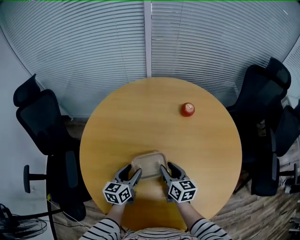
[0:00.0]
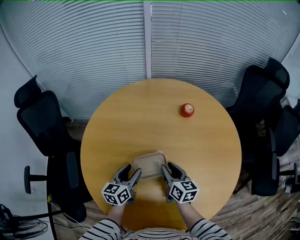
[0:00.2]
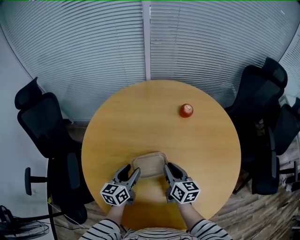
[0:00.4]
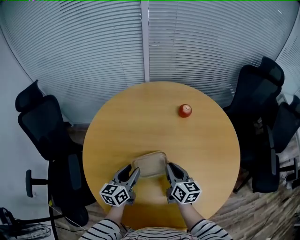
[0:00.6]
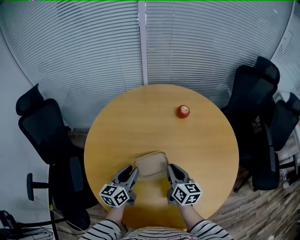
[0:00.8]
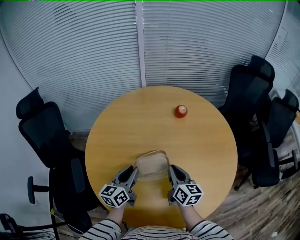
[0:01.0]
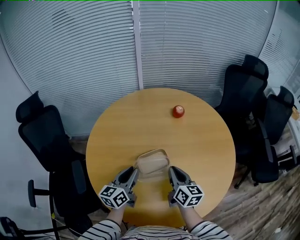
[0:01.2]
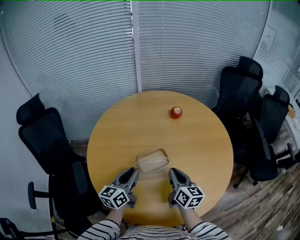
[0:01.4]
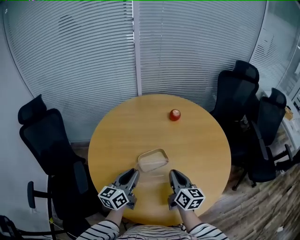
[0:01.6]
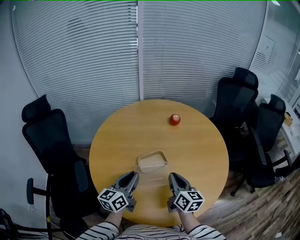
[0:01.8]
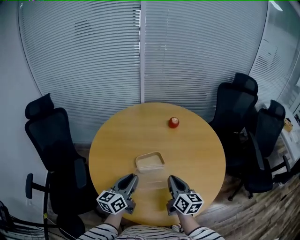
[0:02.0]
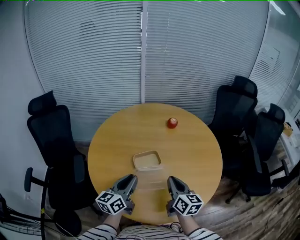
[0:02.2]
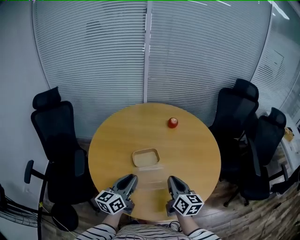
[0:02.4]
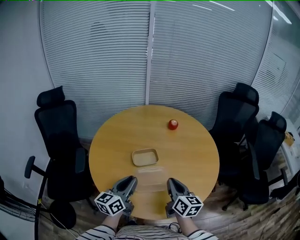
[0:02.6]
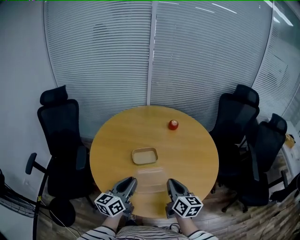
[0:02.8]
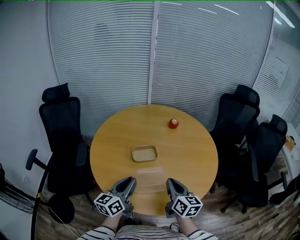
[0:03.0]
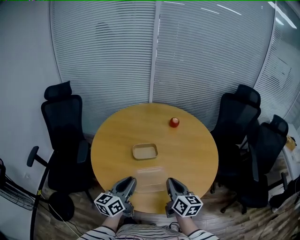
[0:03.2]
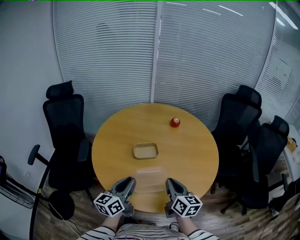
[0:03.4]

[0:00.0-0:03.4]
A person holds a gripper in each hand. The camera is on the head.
0:00.0 to 0:01.6: The left gripper heads upward and backward, covering roughly 15 cm, turns by roughly 20 degrees, and closes up. The right gripper is displaced backward and upward by some 20 cm, and closes up.
0:01.6 to 0:03.4: The two grippers go roughly 20 cm backward and to the right.

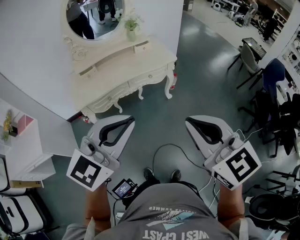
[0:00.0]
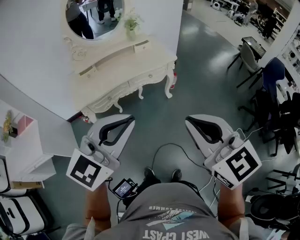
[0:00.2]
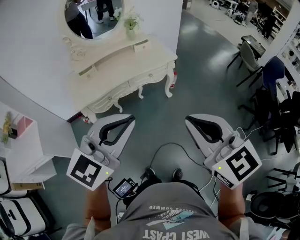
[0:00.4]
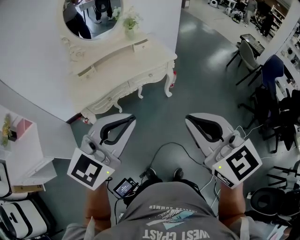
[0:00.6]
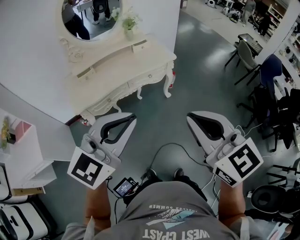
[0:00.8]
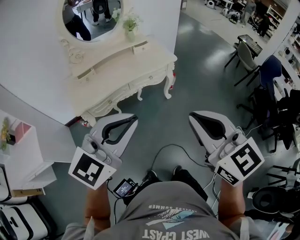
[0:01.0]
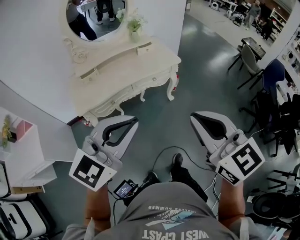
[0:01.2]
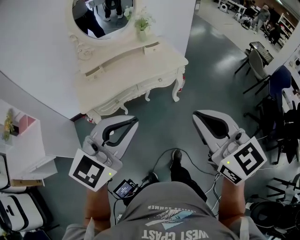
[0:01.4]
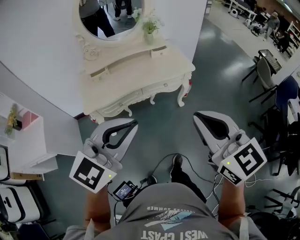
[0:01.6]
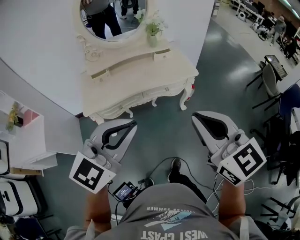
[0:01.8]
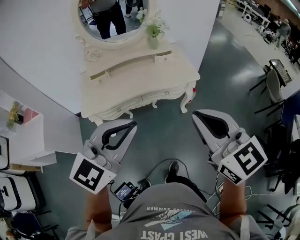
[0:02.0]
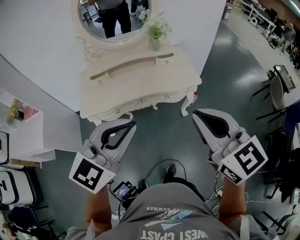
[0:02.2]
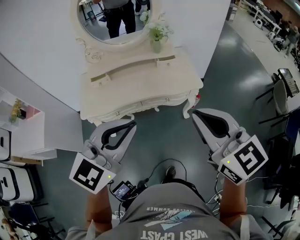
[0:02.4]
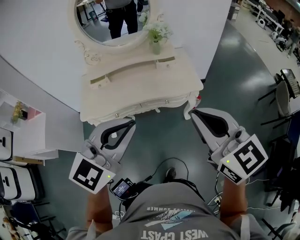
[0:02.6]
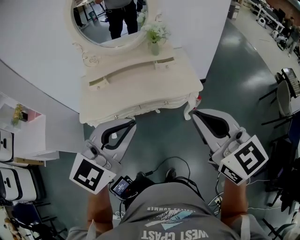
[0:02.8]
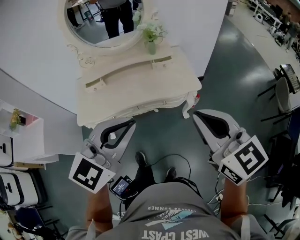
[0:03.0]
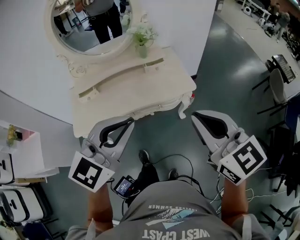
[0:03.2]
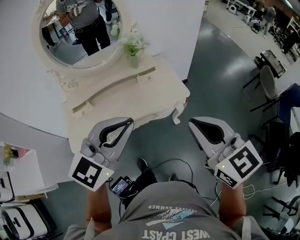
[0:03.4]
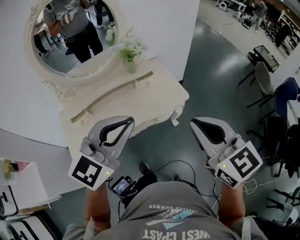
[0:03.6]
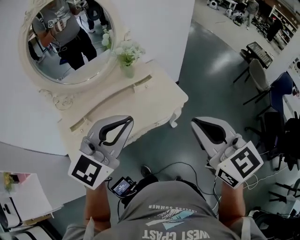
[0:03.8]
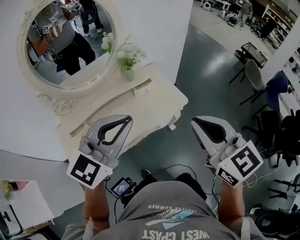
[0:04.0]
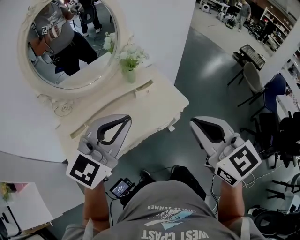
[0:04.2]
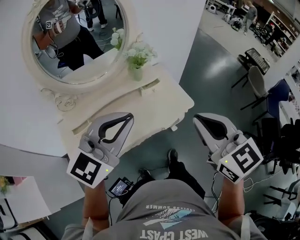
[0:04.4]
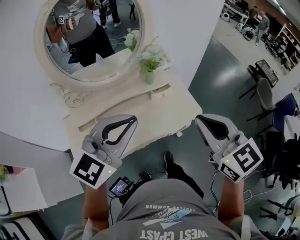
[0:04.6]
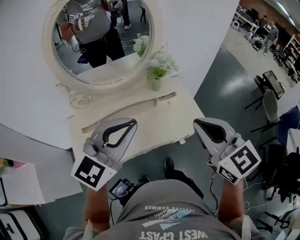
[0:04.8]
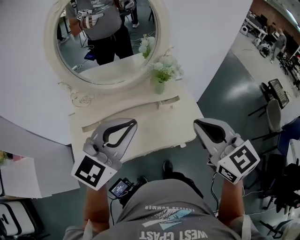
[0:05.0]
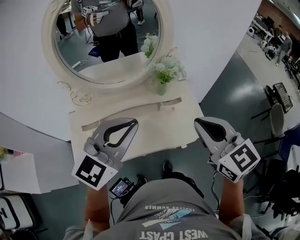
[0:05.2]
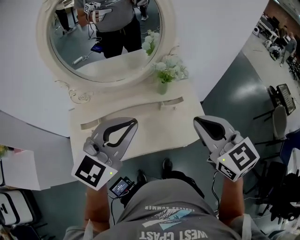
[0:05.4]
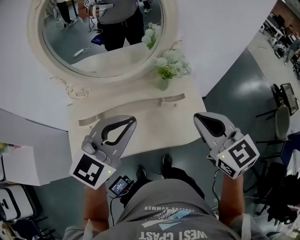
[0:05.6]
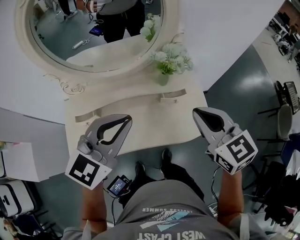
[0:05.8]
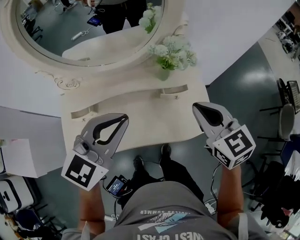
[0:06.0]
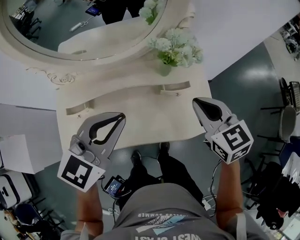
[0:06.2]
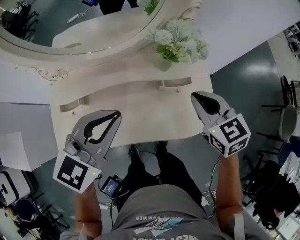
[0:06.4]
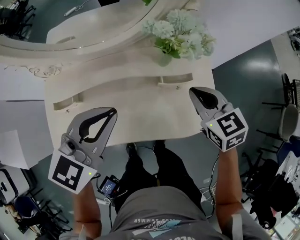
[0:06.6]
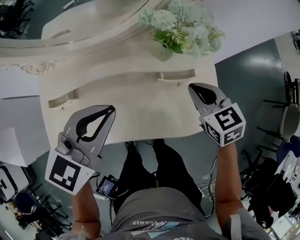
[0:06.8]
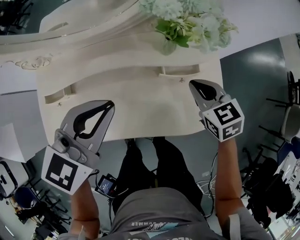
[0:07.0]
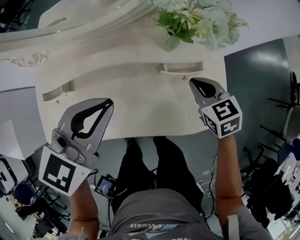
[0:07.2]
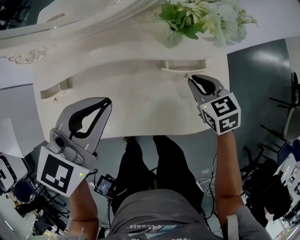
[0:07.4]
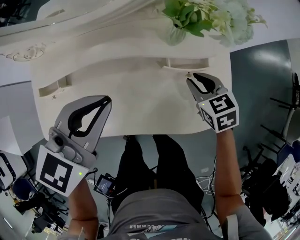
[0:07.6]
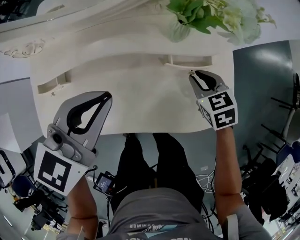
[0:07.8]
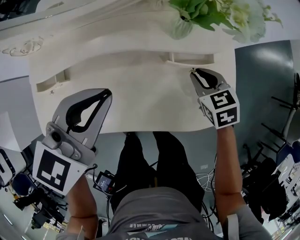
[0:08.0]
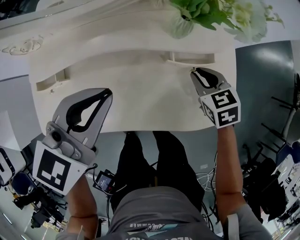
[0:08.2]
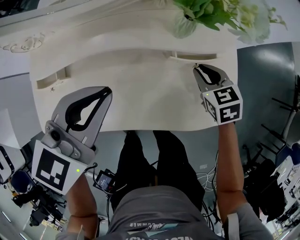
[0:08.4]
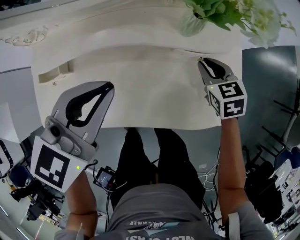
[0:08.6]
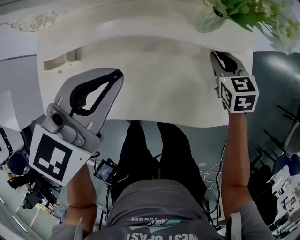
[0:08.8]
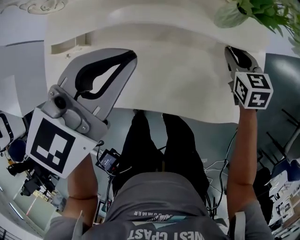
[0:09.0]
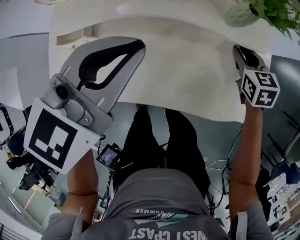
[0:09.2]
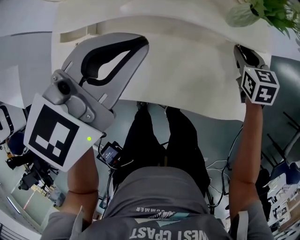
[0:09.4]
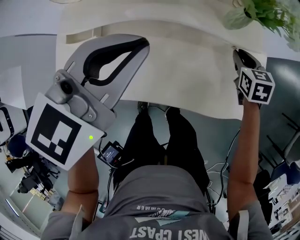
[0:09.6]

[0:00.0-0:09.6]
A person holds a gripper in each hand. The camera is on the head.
0:00.0 to 0:01.6: The left gripper shifts about 10 cm forward and to the left. The right gripper shifts about 15 cm forward.
0:01.6 to 0:03.2: Both grippers travel together forward and to the right, approximately 30 cm.
0:03.2 to 0:04.8: Both grippers move to the left and forward, roughly 25 cm.
0:04.8 to 0:06.4: The right gripper shifts roughly 35 cm forward and downward, and rotates roughly 20 degrees; the left gripper heads downward and forward, covering some 25 cm, and changes its angle by roughly 30 degrees.
0:06.4 to 0:08.0: The left gripper is displaced downward by roughly 10 cm. The right gripper shifts some 25 cm downward.
0:08.0 to 0:09.6: The left gripper changes place by some 5 cm.

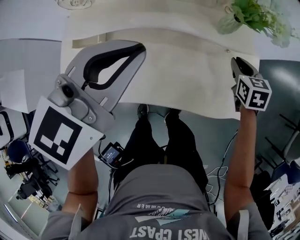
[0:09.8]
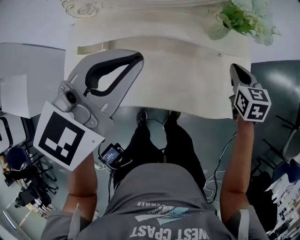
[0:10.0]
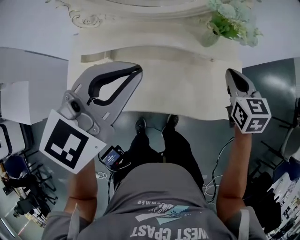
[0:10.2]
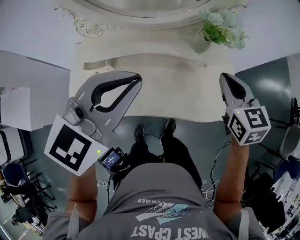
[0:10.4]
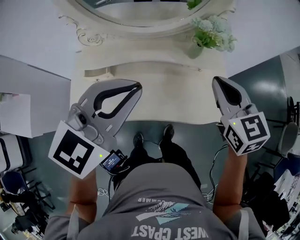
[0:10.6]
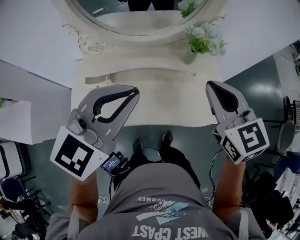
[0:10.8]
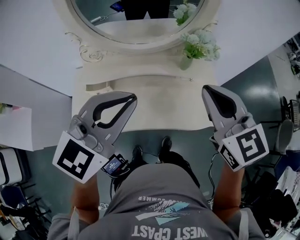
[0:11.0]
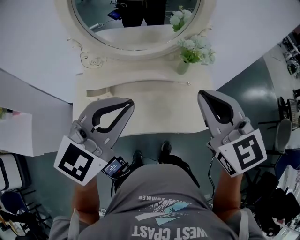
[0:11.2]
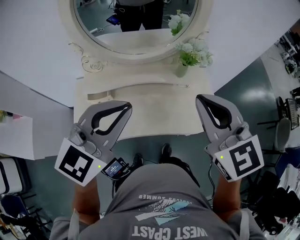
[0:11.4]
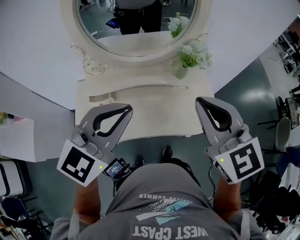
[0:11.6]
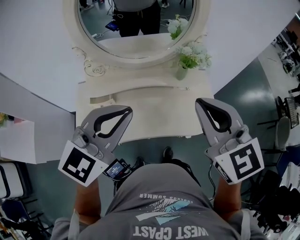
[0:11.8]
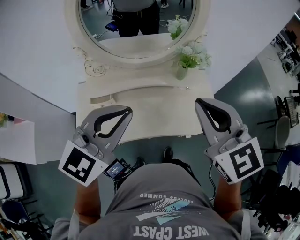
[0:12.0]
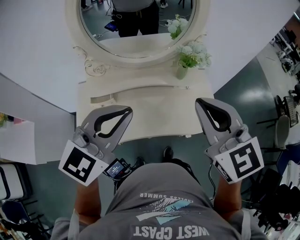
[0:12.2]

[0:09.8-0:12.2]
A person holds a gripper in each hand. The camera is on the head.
0:09.8 to 0:11.0: The left gripper is displaced upward and backward by about 20 cm. Meanwhile the right gripper heads upward and backward, covering roughly 40 cm, and rotates roughly 30 degrees.
0:11.0 to 0:12.2: The right gripper goes about 10 cm backward and upward; the left gripper changes place by some 5 cm.

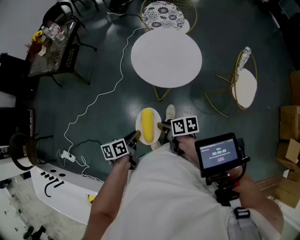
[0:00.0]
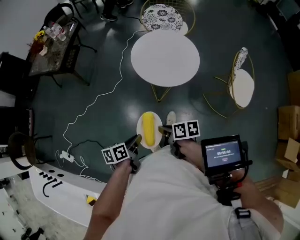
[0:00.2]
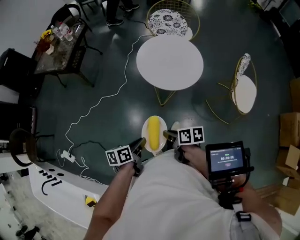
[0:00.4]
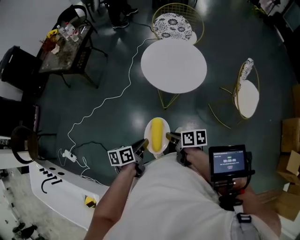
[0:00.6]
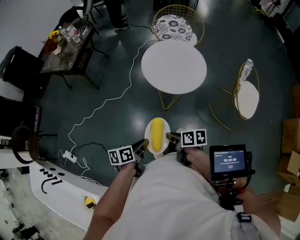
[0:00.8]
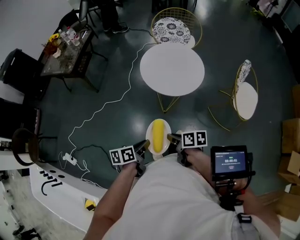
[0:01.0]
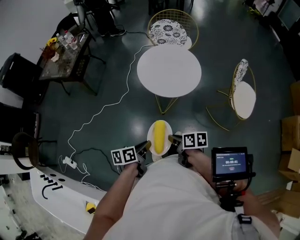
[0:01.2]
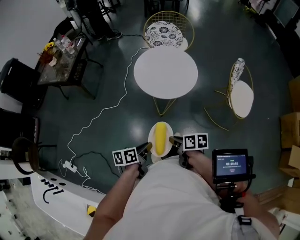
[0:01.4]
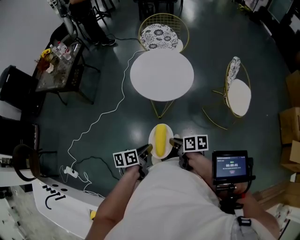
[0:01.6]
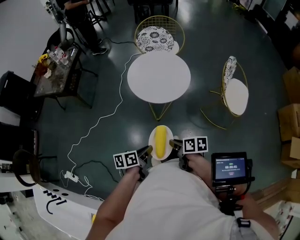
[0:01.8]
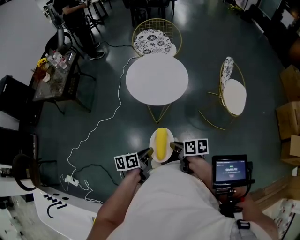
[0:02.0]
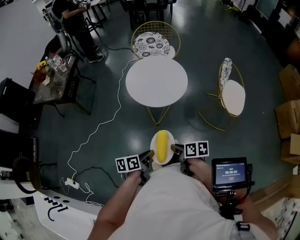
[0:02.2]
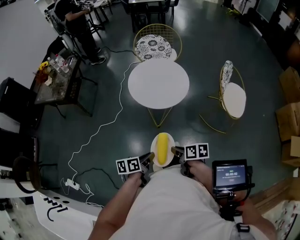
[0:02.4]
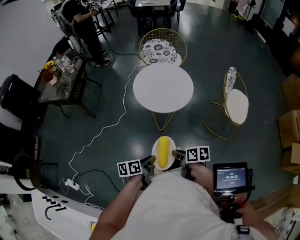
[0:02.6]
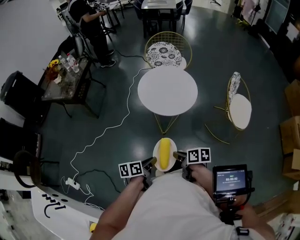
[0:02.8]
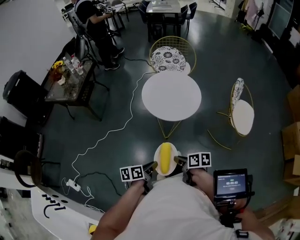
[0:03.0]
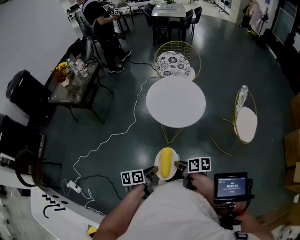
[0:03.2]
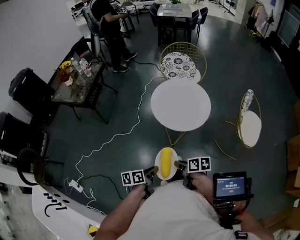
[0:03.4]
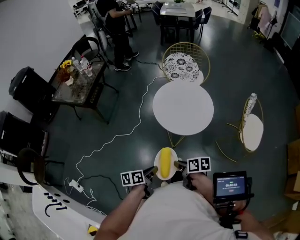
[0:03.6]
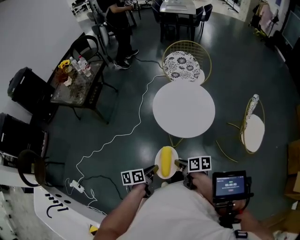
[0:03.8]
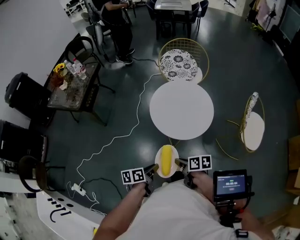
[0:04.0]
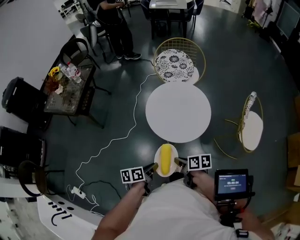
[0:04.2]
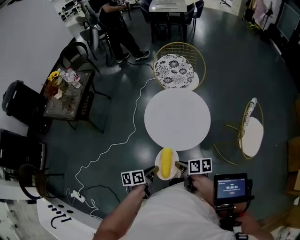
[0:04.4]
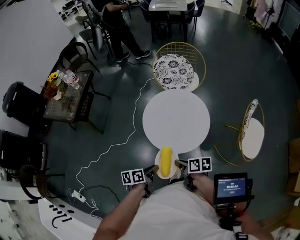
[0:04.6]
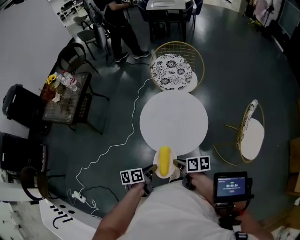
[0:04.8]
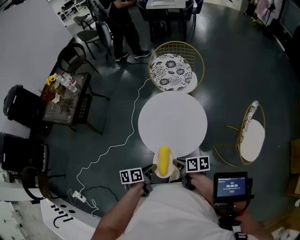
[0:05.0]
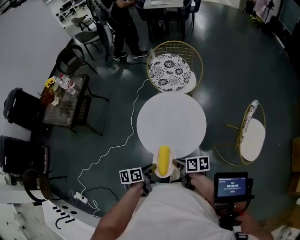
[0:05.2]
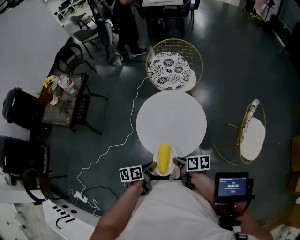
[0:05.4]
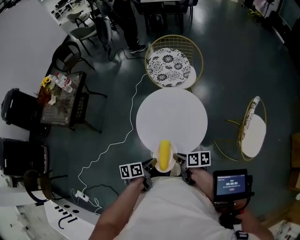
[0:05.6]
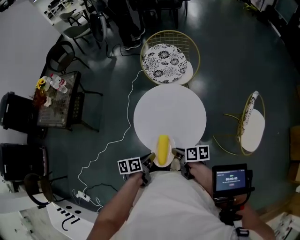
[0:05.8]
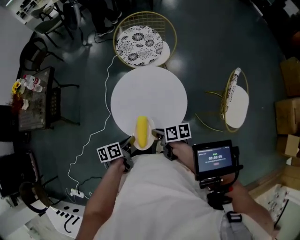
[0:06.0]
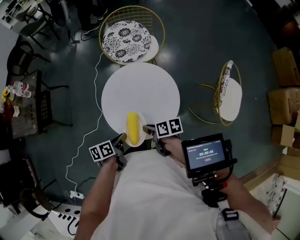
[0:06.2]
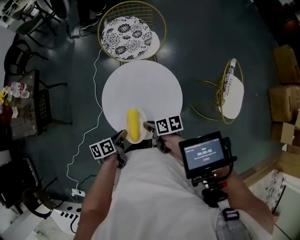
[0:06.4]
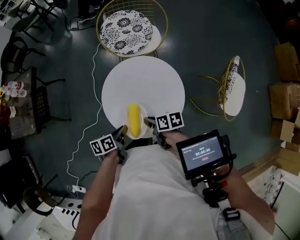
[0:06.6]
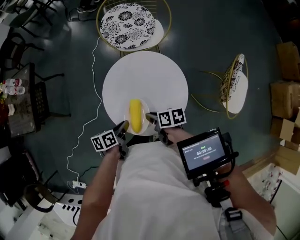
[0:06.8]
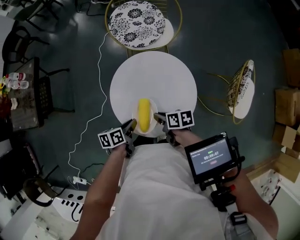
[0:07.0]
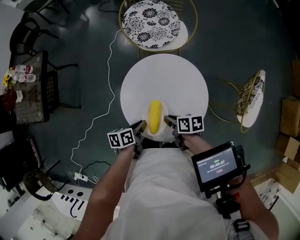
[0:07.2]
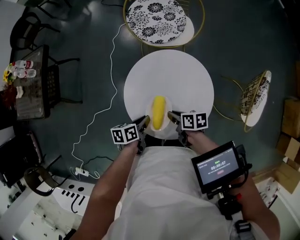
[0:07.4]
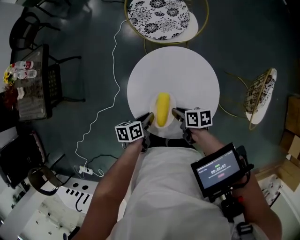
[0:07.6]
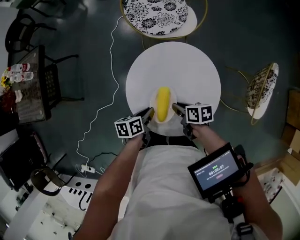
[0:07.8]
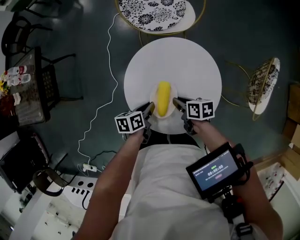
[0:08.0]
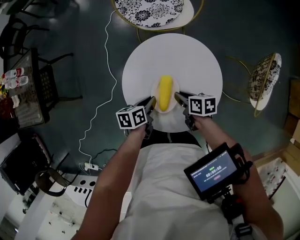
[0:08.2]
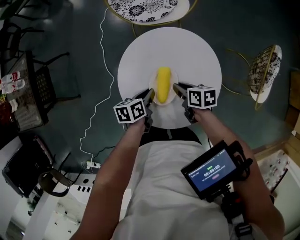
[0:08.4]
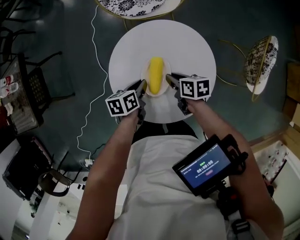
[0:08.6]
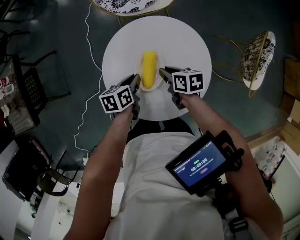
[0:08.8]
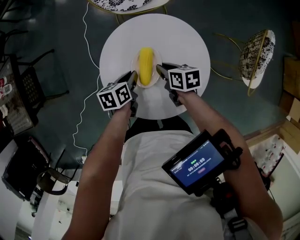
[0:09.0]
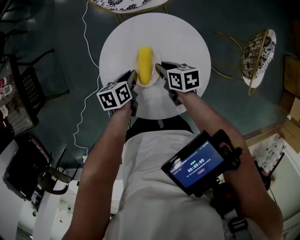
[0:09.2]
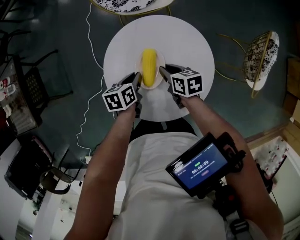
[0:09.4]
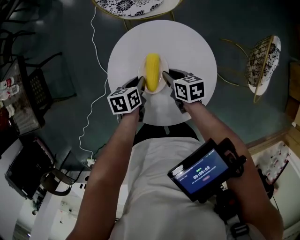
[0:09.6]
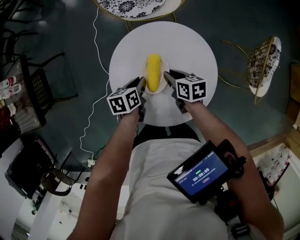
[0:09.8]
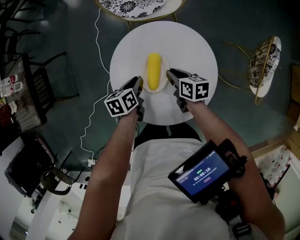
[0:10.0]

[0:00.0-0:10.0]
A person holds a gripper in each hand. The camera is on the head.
0:00.0 to 0:01.4: Both grippers travel together backward, some 5 cm.
0:01.4 to 0:02.8: There are only small adjustments of the grippers.
0:02.8 to 0:04.2: Both grippers travel together forward, roughly 15 cm.
0:04.2 to 0:05.8: The two grippers go roughly 20 cm forward and to the right.
0:05.8 to 0:07.2: Both grippers move forward and downward, approximately 15 cm.
0:07.2 to 0:08.6: The two grippers go about 10 cm forward and downward.
0:08.6 to 0:10.0: The grippers stay close to where they were, moving slightly.
